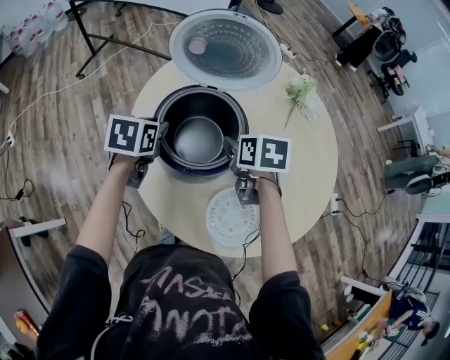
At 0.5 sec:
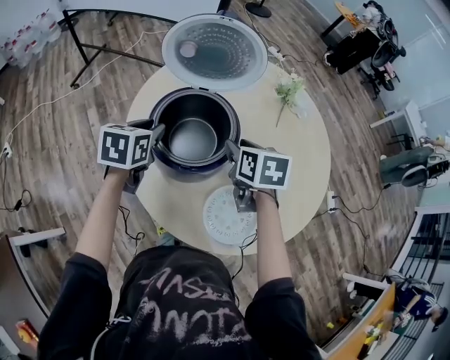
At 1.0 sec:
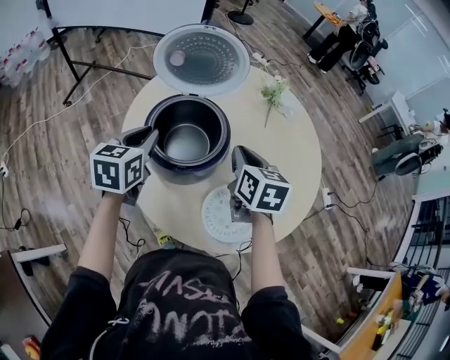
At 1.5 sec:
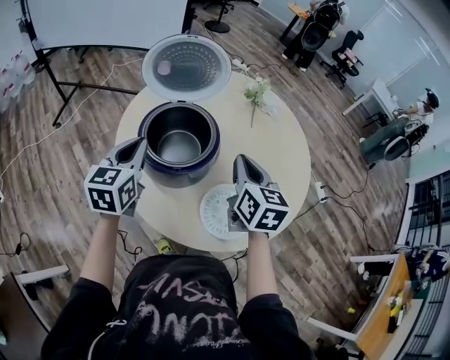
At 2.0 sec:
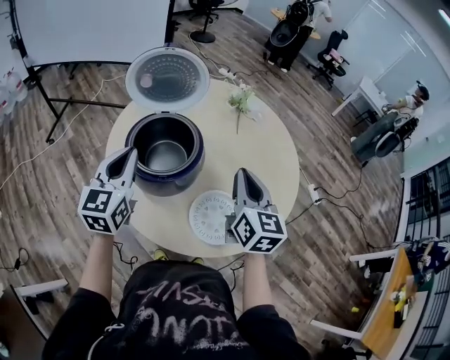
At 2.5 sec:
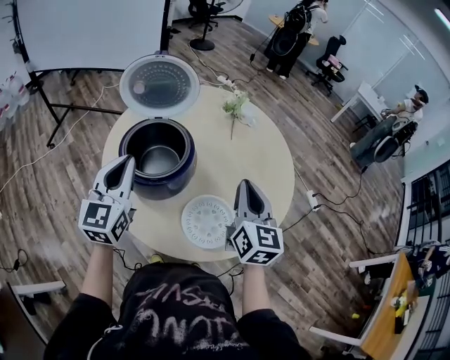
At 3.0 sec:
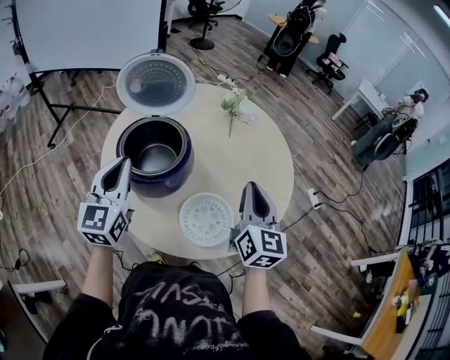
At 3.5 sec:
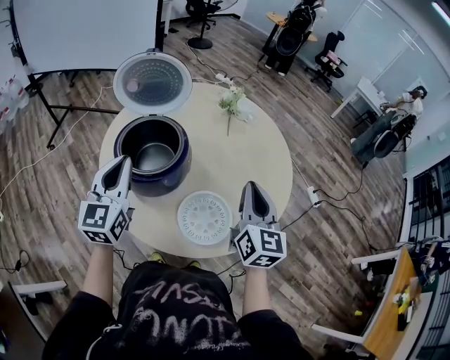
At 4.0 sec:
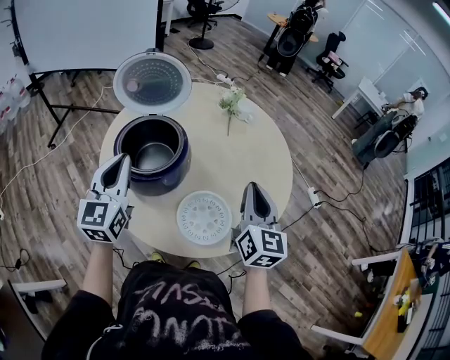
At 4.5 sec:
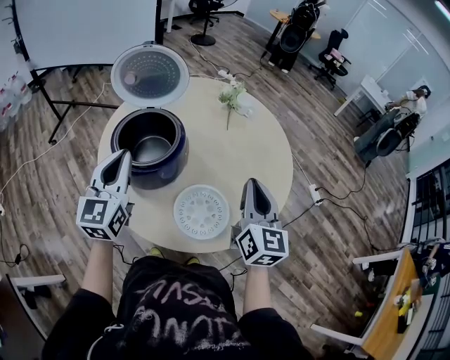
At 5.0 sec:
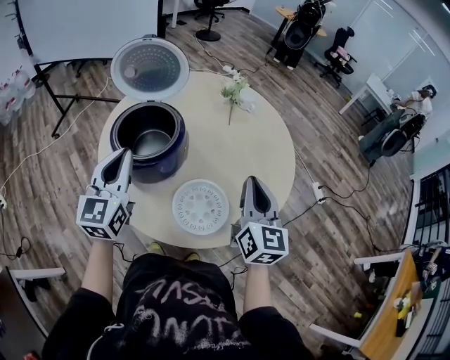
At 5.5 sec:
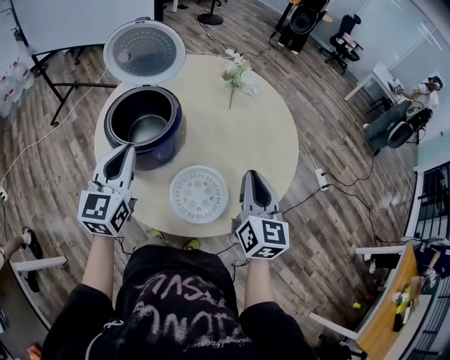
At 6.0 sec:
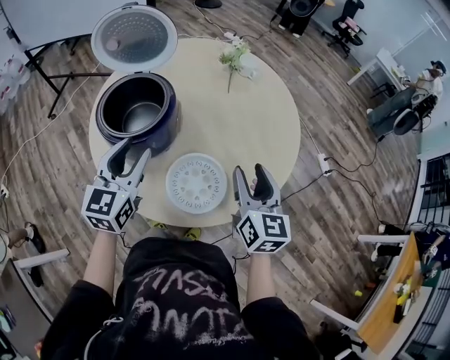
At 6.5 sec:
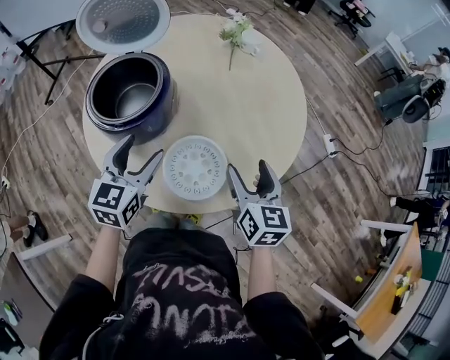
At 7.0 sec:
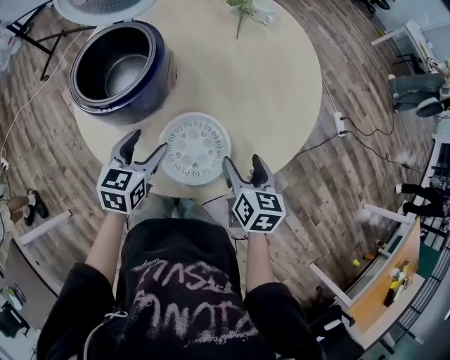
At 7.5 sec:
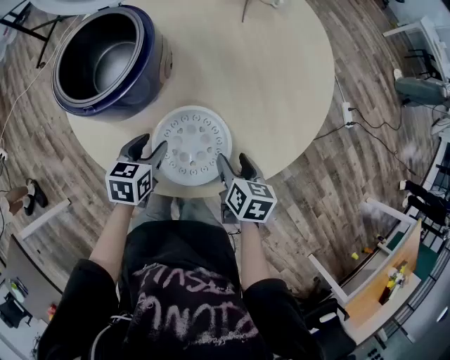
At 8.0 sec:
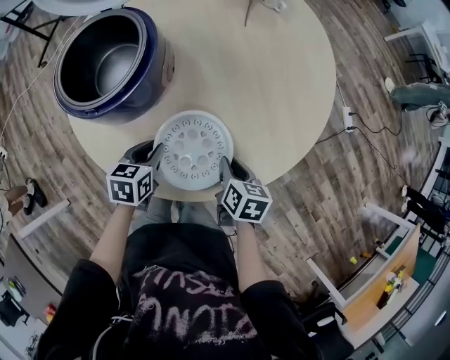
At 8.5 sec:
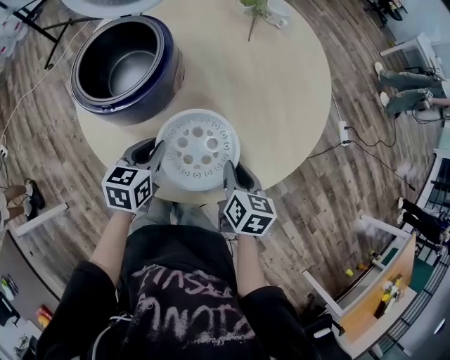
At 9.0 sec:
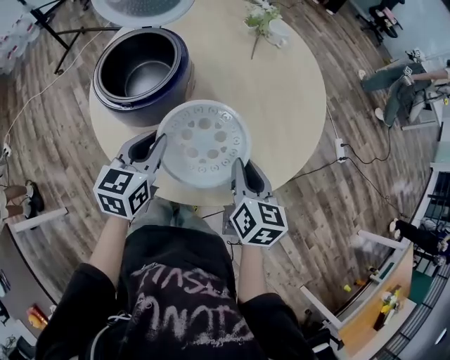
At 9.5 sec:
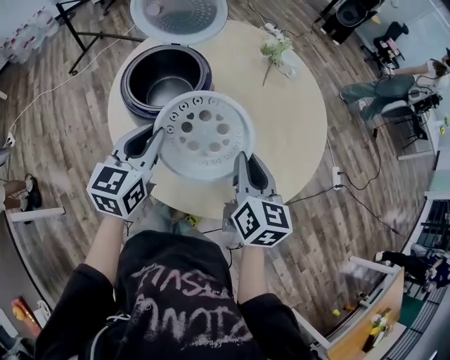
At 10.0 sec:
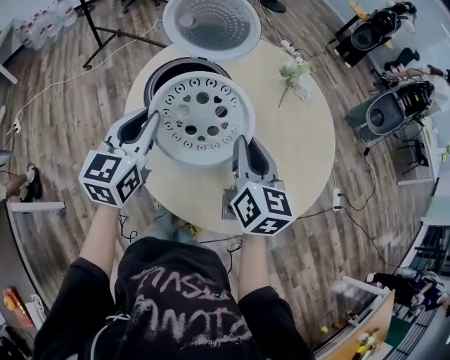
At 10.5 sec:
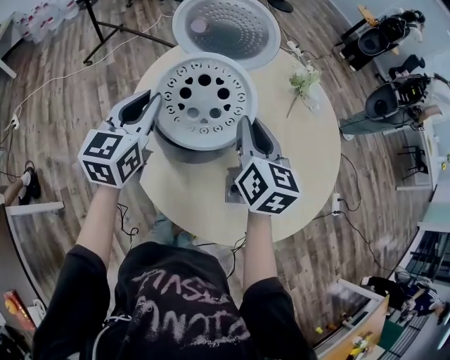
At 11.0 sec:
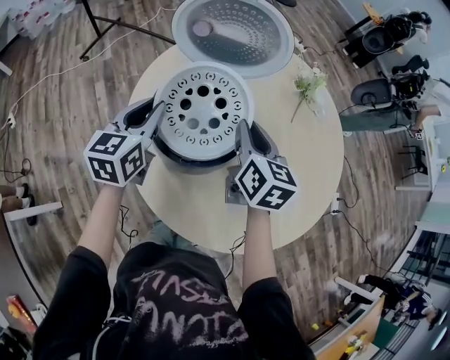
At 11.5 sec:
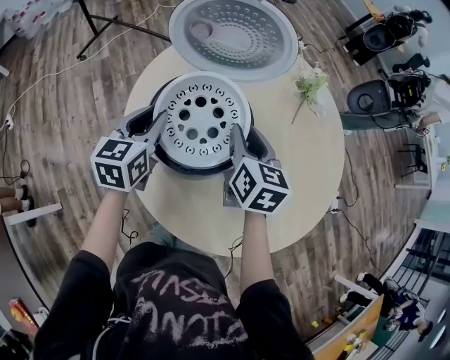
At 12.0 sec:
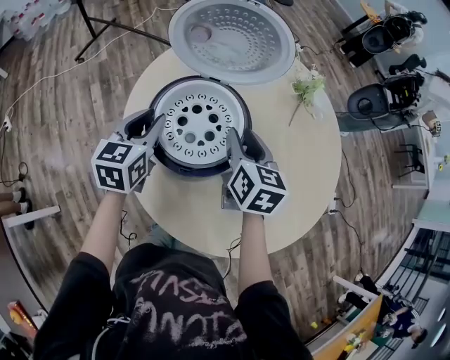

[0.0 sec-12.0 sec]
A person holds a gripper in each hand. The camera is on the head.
0.0 sec to 2.0 sec: The left gripper is displaced upward and backward by roughly 20 cm, tips its fingers upward by roughly 40 degrees, and closes up. Meanwhile the right gripper is displaced upward, backward and to the right by approximately 25 cm, tilts its fingers some 40 degrees upward, and closes up.
2.0 sec to 4.0 sec: The right gripper shifts about 10 cm to the right, while the left gripper moves about 5 cm.
4.0 sec to 6.0 sec: The left gripper heads to the right and downward, covering some 10 cm, and opens up, while the right gripper goes roughly 5 cm downward, and opens.
6.0 sec to 8.0 sec: Both grippers travel together downward, about 25 cm. The left gripper tilts its fingers about 40 degrees downward, and opens and closes again; the right gripper angles its fingers downward, by approximately 40 degrees, and closes.
8.0 sec to 10.0 sec: The grippers both shift upward and to the left by approximately 35 cm. The left gripper tips its fingers upward by about 40 degrees, while the right gripper angles its fingers upward, by some 40 degrees.
10.0 sec to 12.0 sec: The grippers both shift forward, downward and to the left by roughly 15 cm.

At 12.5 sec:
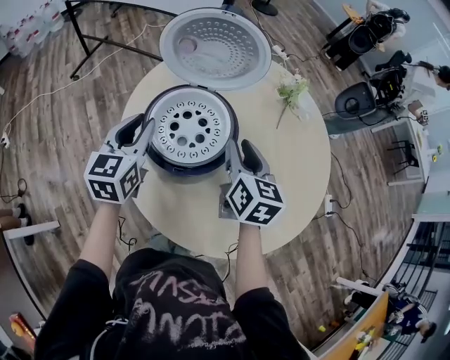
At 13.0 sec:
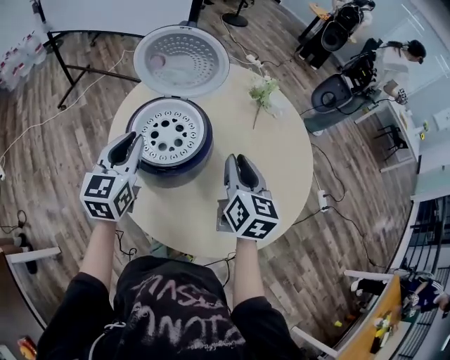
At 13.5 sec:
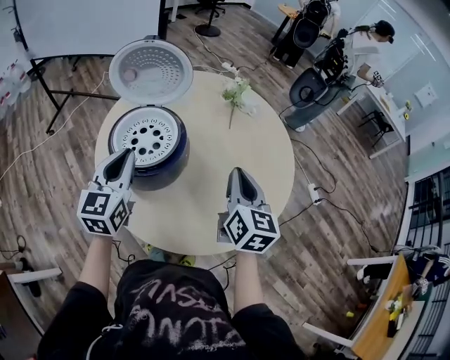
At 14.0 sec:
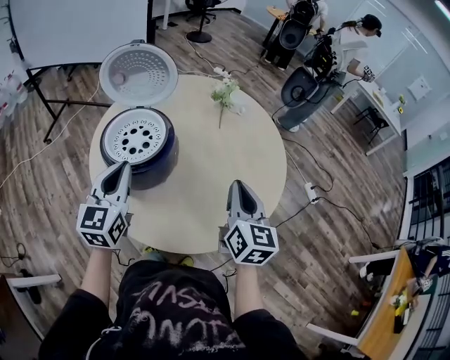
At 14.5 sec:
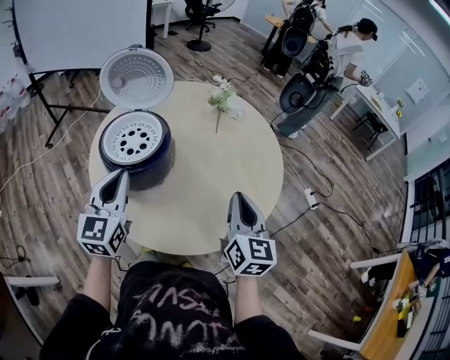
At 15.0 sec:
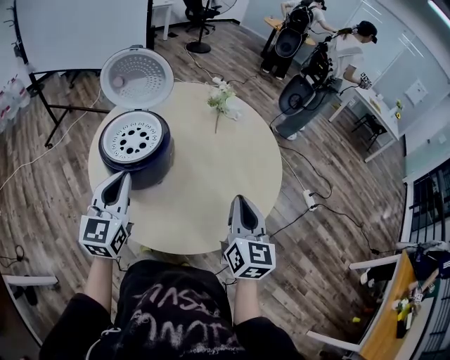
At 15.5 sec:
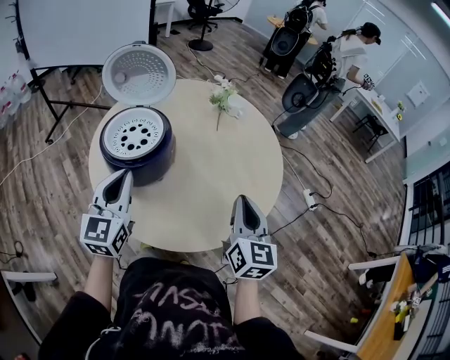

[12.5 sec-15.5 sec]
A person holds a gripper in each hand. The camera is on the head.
12.5 sec to 14.0 sec: The right gripper travels to the right and backward by about 25 cm, and closes. Meanwhile the left gripper travels to the right, backward and upward by approximately 20 cm.
14.0 sec to 15.5 sec: The right gripper moves roughly 5 cm.

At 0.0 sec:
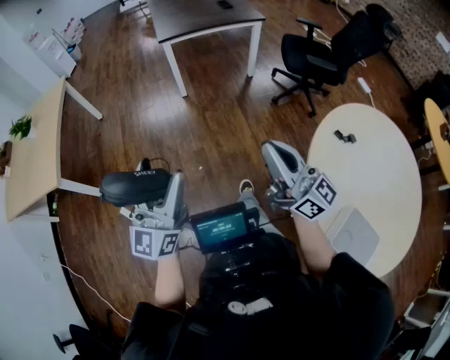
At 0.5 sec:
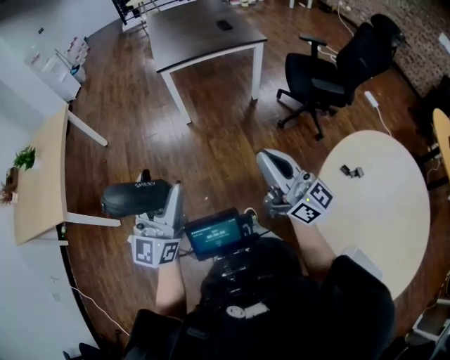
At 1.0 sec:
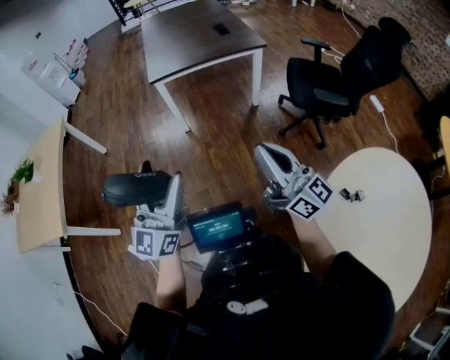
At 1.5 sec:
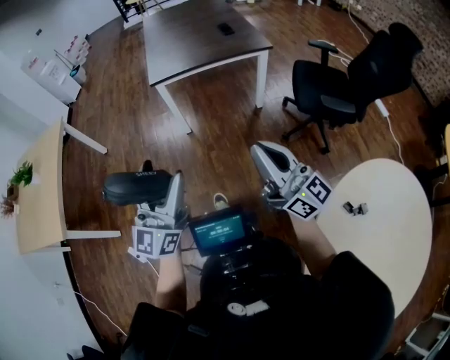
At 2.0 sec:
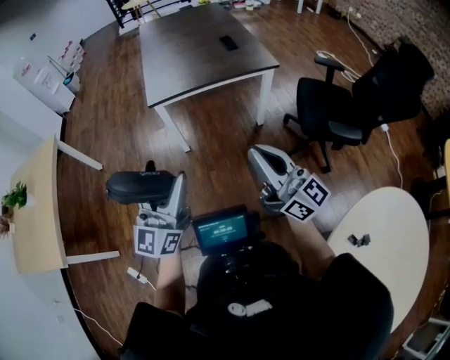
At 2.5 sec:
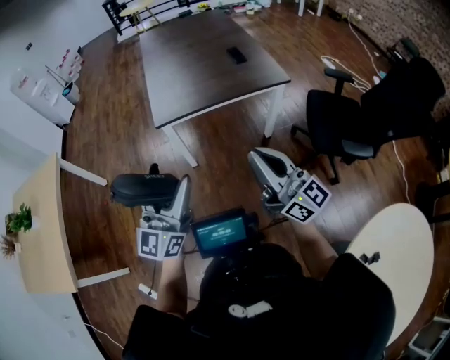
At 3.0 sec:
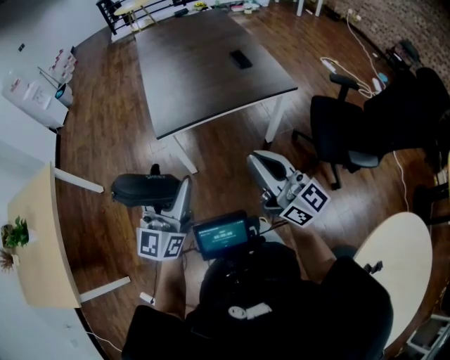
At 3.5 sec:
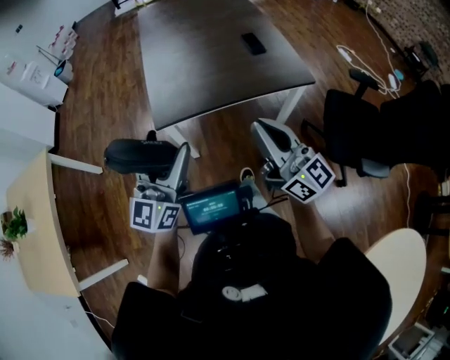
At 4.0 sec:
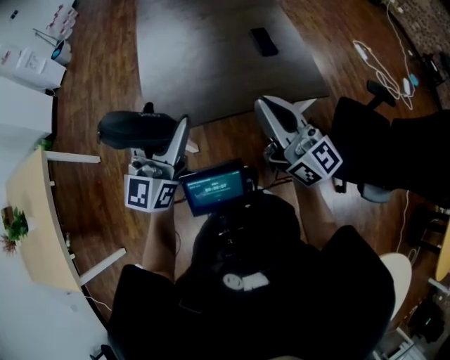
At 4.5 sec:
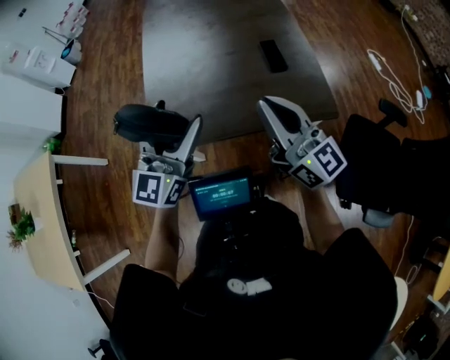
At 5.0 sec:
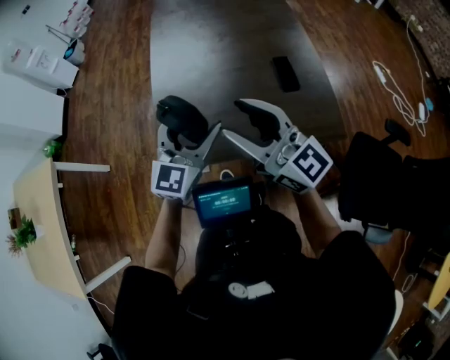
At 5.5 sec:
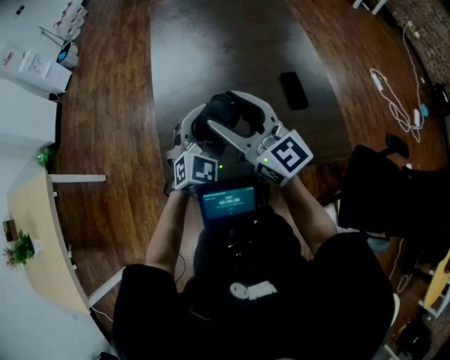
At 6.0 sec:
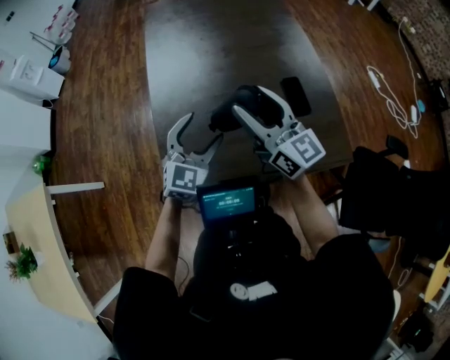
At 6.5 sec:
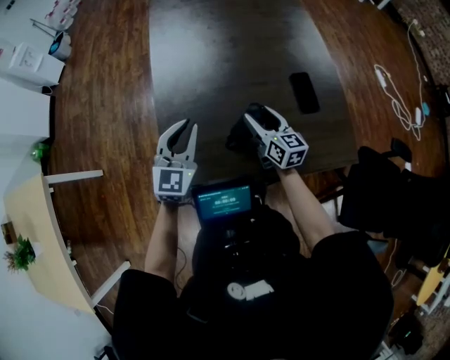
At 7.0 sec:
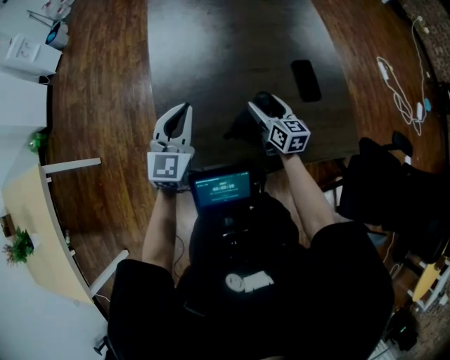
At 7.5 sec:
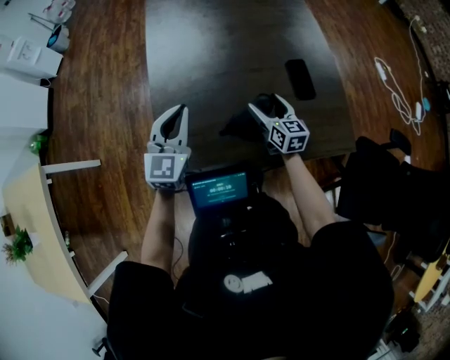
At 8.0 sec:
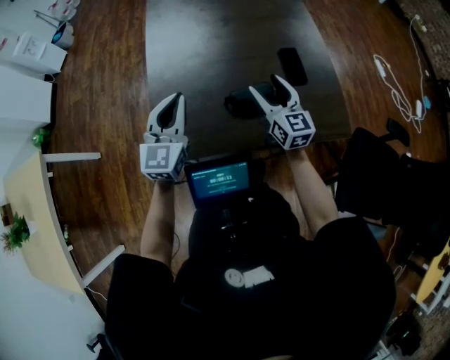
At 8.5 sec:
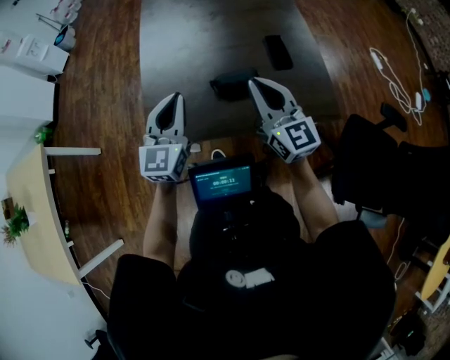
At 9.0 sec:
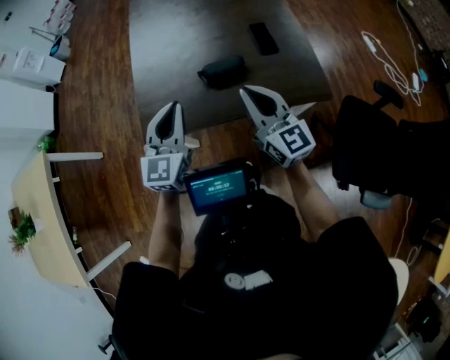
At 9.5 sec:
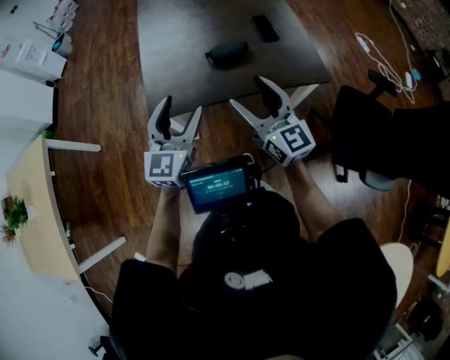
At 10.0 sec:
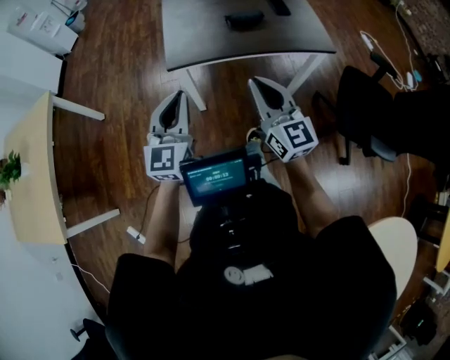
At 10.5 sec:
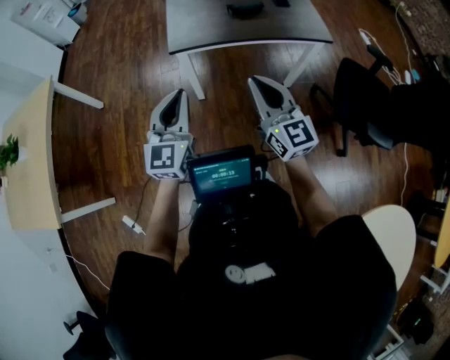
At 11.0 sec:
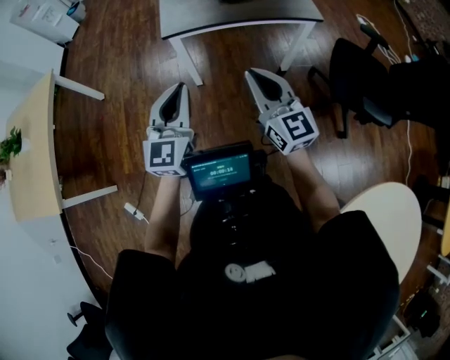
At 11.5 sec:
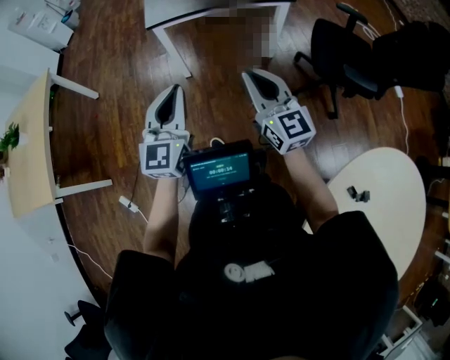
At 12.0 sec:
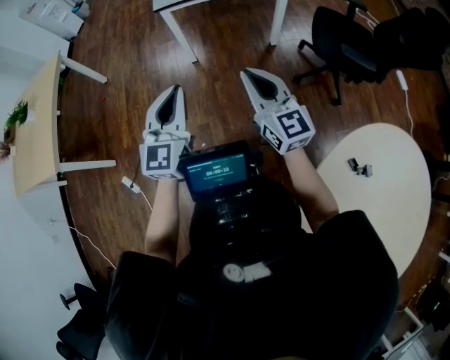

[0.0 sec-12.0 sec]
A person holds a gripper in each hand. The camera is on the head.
0.0 sec to 2.0 sec: The two grippers travel together, forward, some 50 cm.
2.0 sec to 4.0 sec: Both grippers are carried forward, some 50 cm.
4.0 sec to 6.0 sec: The left gripper travels forward and downward by approximately 35 cm, and points its fingers about 30 degrees further downward, while the right gripper shifts about 35 cm forward, and opens its fingers.
6.0 sec to 8.0 sec: The left gripper changes place by approximately 5 cm, turns by roughly 20 degrees, and closes up, while the right gripper travels downward and to the right by about 15 cm.
8.0 sec to 10.0 sec: Both grippers are carried backward, roughly 50 cm. The right gripper closes; the left gripper opens and closes again.
10.0 sec to 12.0 sec: Both grippers are carried backward, roughly 40 cm.
